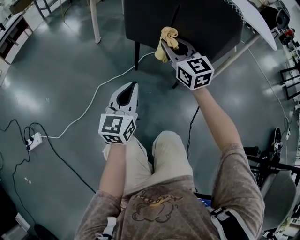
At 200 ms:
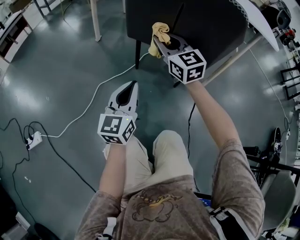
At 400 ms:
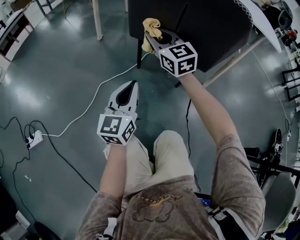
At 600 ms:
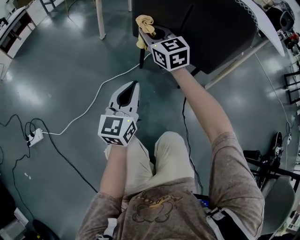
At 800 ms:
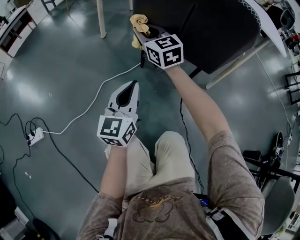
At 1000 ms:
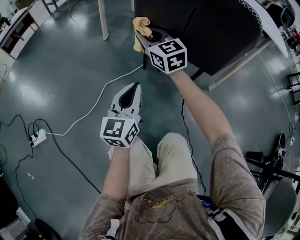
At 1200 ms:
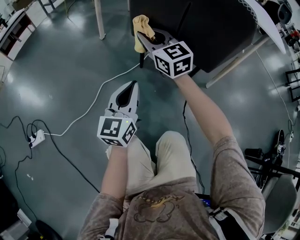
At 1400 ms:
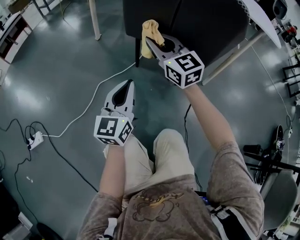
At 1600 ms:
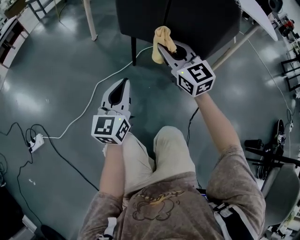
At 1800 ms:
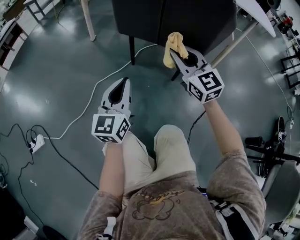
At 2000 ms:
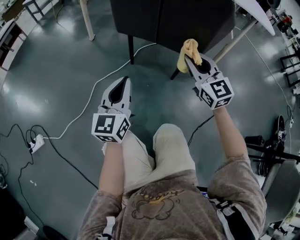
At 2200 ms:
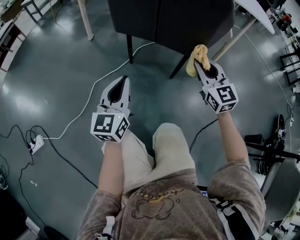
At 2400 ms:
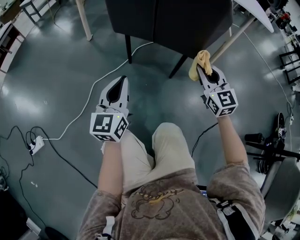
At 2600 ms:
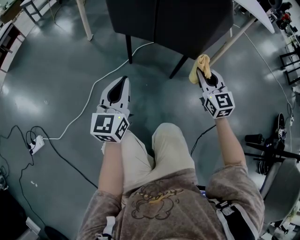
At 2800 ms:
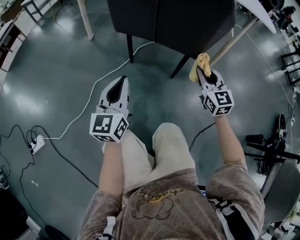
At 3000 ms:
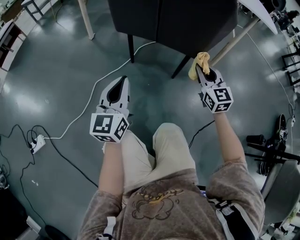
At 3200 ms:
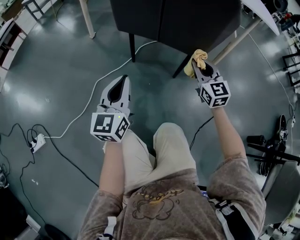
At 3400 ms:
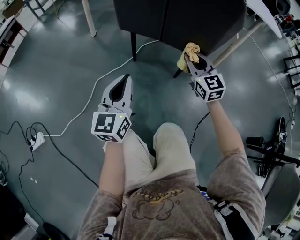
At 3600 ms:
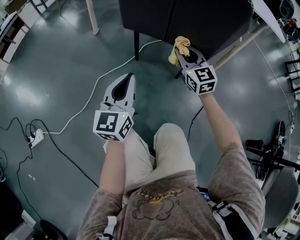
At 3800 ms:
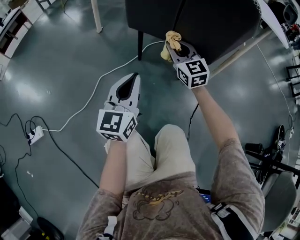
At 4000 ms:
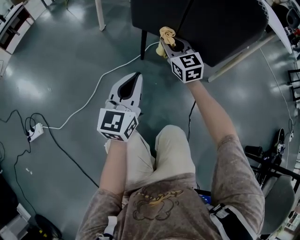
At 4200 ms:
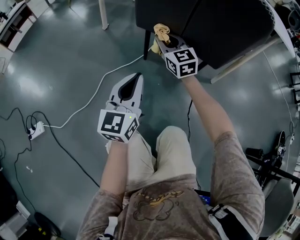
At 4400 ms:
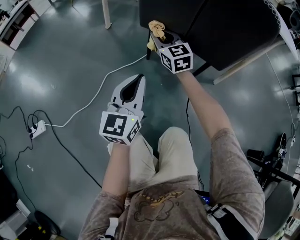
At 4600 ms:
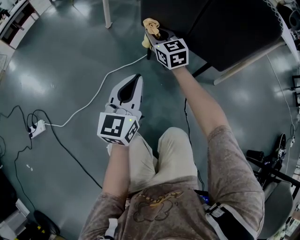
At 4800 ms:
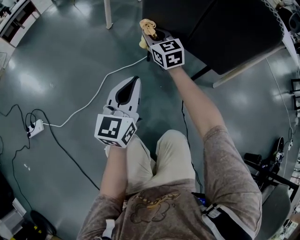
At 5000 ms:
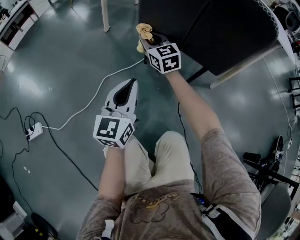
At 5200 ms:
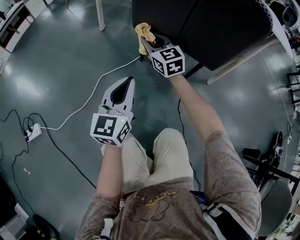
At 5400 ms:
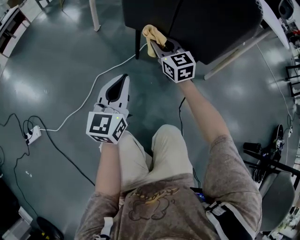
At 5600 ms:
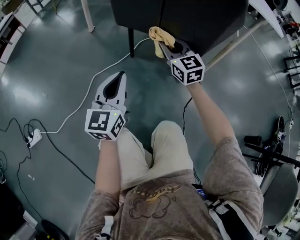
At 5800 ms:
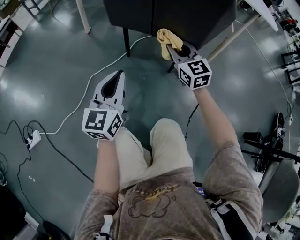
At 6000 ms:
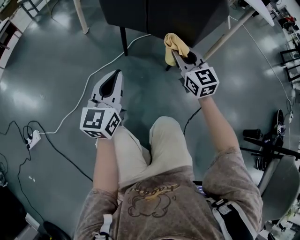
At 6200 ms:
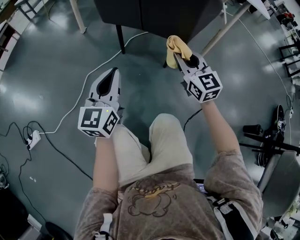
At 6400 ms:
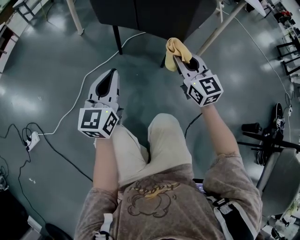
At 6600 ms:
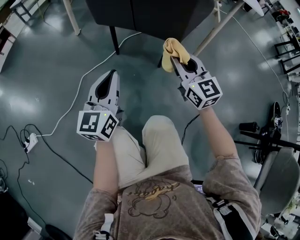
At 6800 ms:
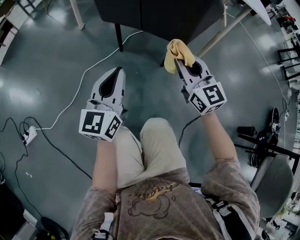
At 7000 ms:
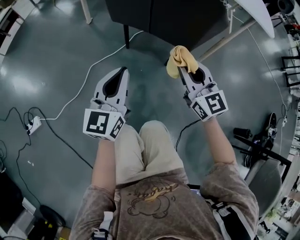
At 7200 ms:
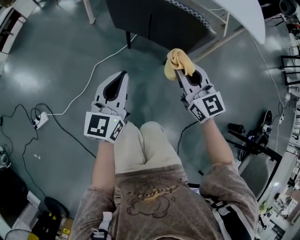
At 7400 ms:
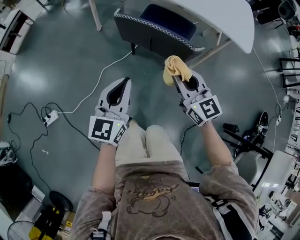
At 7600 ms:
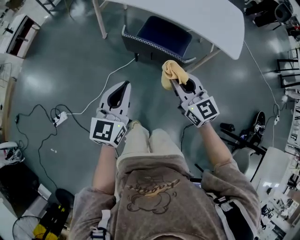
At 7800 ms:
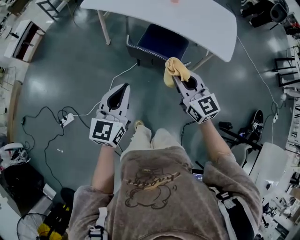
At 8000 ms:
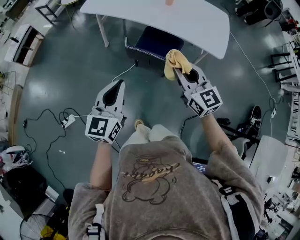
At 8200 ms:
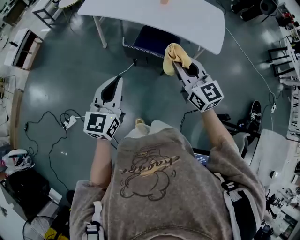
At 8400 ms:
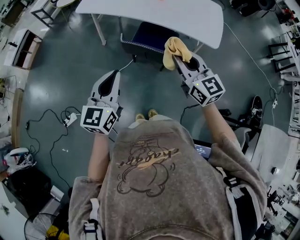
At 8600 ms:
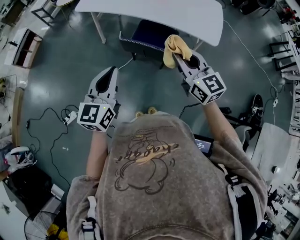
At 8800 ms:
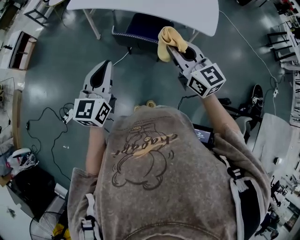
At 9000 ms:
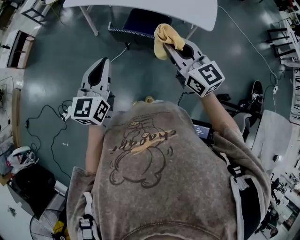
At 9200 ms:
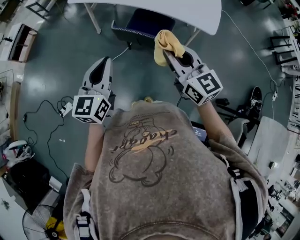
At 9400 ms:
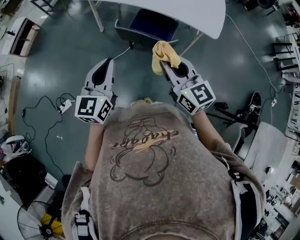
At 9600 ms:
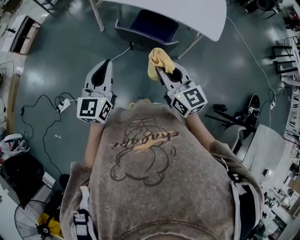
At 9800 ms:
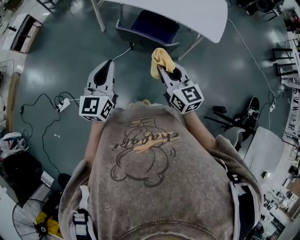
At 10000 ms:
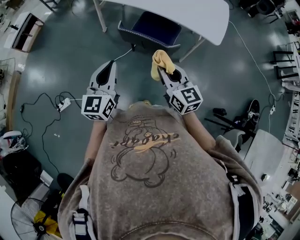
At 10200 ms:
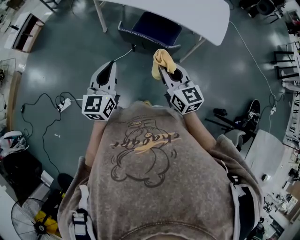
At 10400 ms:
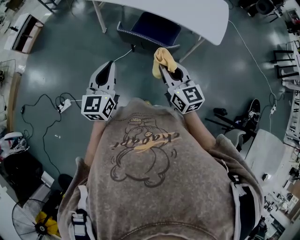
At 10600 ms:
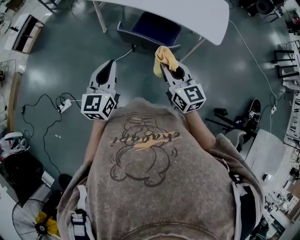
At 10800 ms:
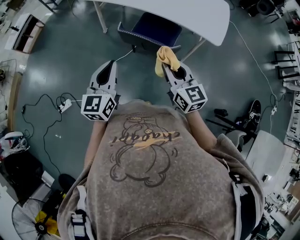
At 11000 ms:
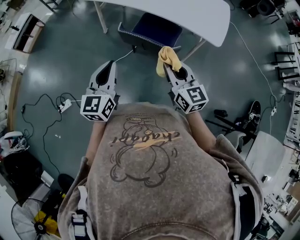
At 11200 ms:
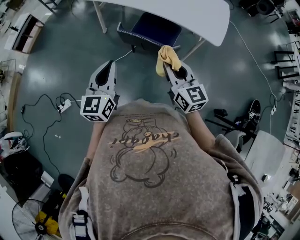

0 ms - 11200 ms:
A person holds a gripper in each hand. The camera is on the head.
0 ms - 1600 ms: The right gripper reaches roughly 10 cm to the left, then returns.
1600 ms - 3200 ms: The right gripper heads to the right and downward, covering approximately 20 cm.
3200 ms - 4800 ms: The right gripper is displaced to the left and forward by about 30 cm.
4800 ms - 6400 ms: The left gripper moves to the right, approximately 5 cm. The right gripper moves to the right and backward, approximately 35 cm.
6400 ms - 8000 ms: The two grippers go roughly 50 cm upward.
8000 ms - 9600 ms: The right gripper shifts some 10 cm backward.
9600 ms - 11200 ms: The right gripper moves approximately 5 cm.

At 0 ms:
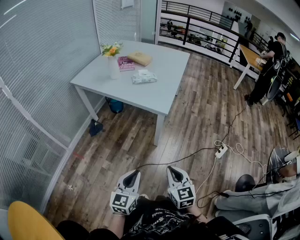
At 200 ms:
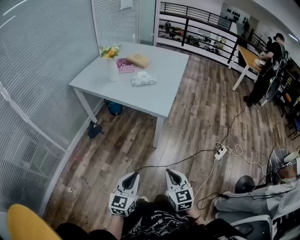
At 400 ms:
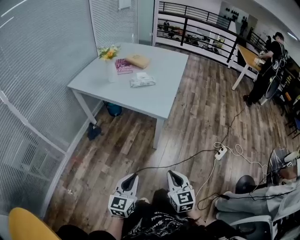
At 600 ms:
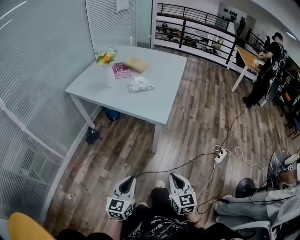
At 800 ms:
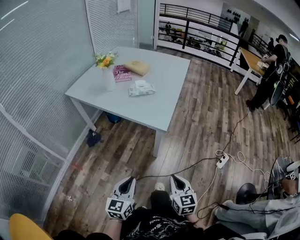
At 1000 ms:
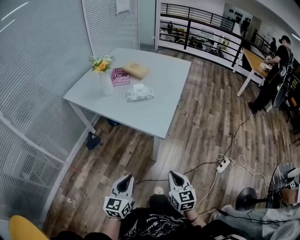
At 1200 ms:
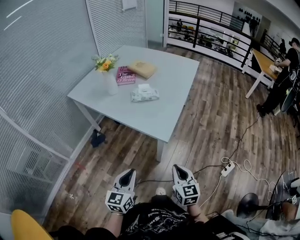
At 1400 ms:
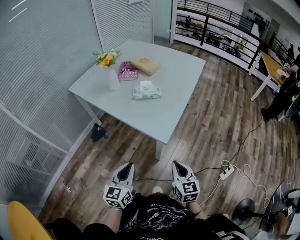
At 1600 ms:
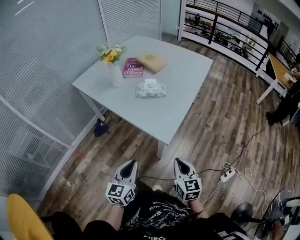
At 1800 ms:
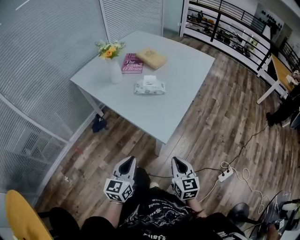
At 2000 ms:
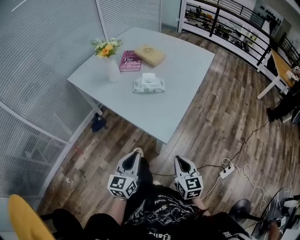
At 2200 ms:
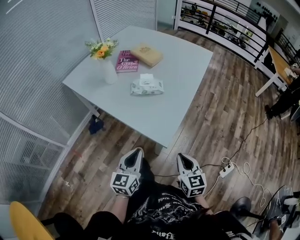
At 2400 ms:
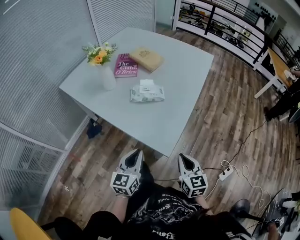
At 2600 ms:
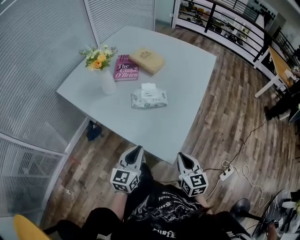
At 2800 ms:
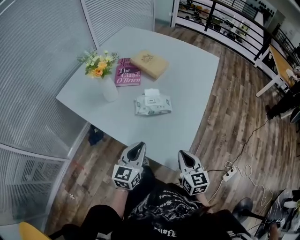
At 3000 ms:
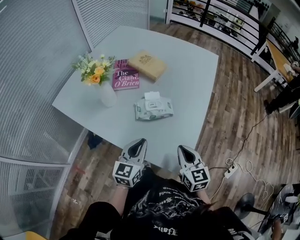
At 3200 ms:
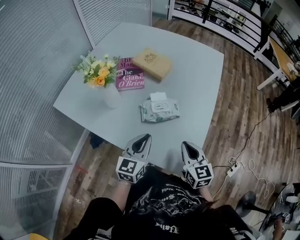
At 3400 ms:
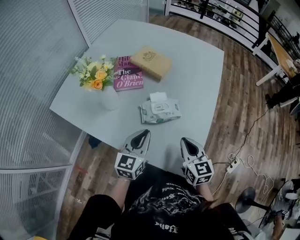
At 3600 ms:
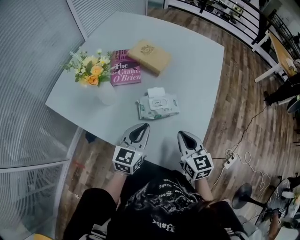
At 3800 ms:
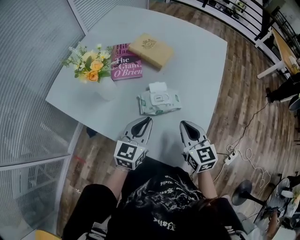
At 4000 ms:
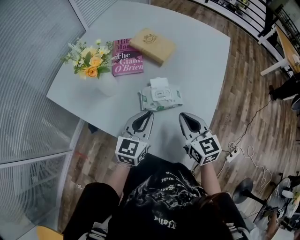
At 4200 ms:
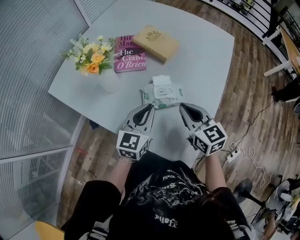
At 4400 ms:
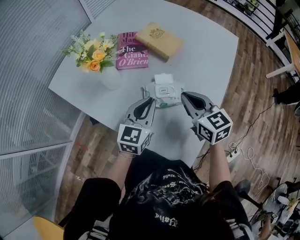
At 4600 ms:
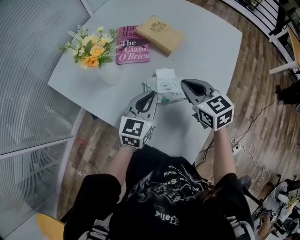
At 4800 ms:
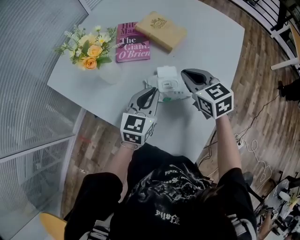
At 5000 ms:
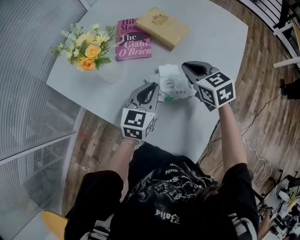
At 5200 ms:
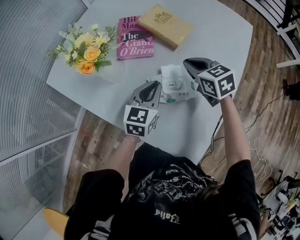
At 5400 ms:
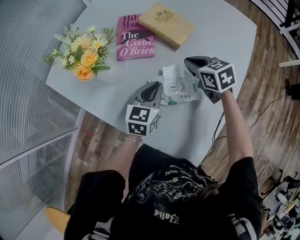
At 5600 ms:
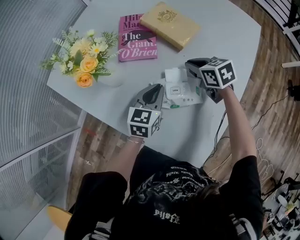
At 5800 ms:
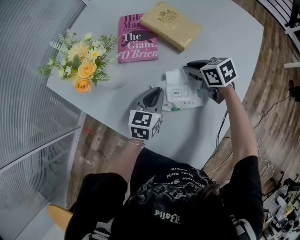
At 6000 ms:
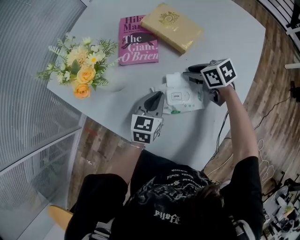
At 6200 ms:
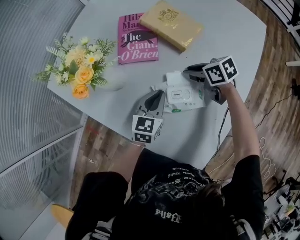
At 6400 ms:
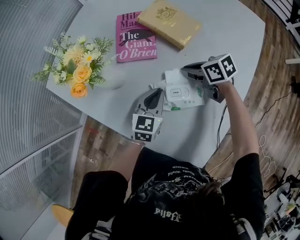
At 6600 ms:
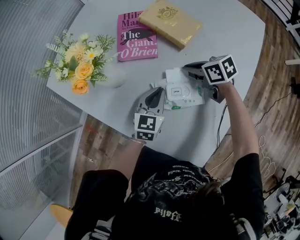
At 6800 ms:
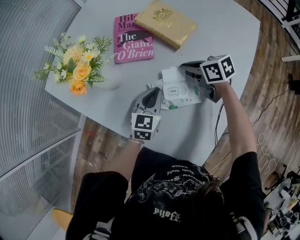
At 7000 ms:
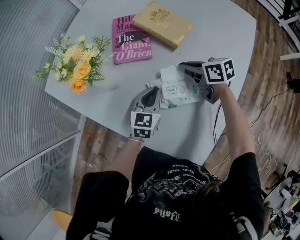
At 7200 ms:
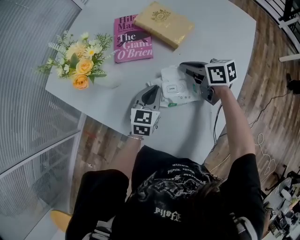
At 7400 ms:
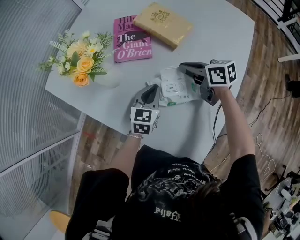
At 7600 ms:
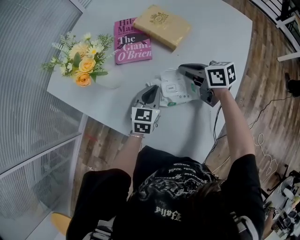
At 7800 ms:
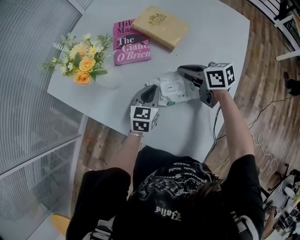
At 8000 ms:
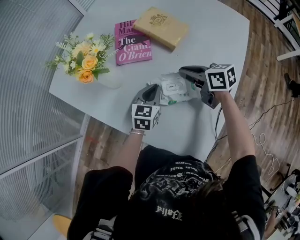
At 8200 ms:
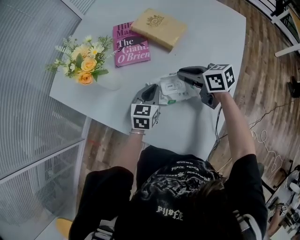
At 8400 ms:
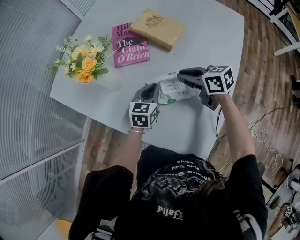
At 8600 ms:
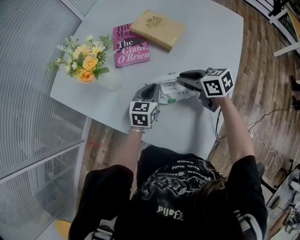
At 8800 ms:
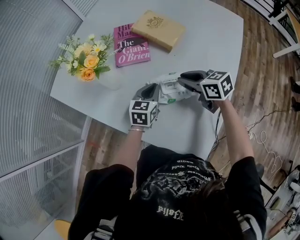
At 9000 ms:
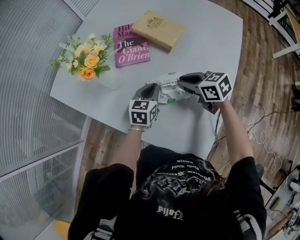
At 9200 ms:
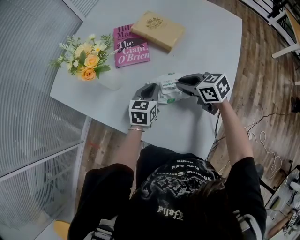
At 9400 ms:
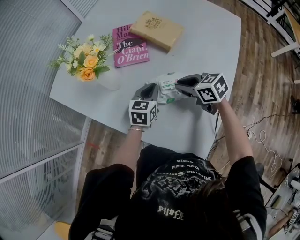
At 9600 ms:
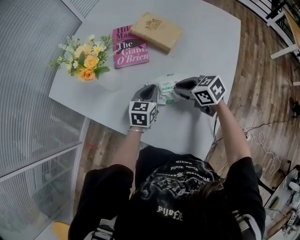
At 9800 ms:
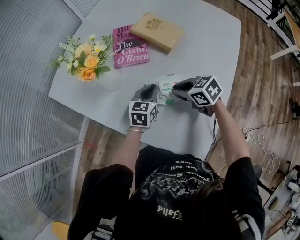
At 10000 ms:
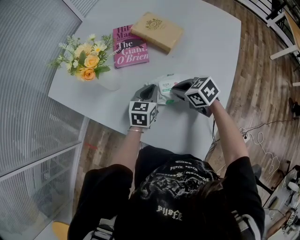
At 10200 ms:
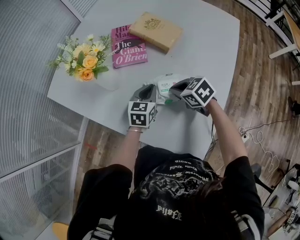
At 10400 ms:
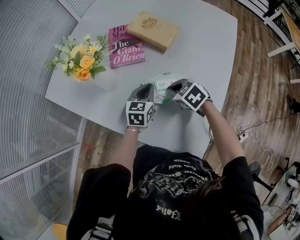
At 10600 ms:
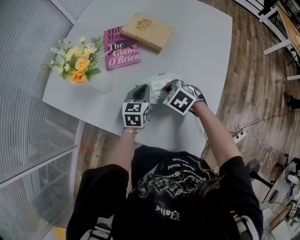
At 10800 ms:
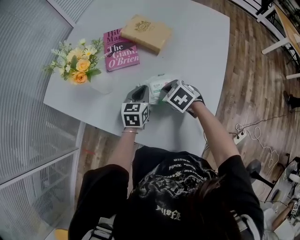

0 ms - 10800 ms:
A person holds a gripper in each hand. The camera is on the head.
0 ms - 1600 ms: The grippers both shift forward by about 30 cm.
1600 ms - 3000 ms: The two grippers go some 30 cm forward.
3000 ms - 4600 ms: The two grippers go roughly 20 cm forward. The right gripper swivels roughly 20 degrees.
4600 ms - 6200 ms: The grippers both shift downward and forward by roughly 15 cm. The right gripper changes its angle by about 40 degrees, and opens up.
6200 ms - 7800 ms: The right gripper heads upward, covering roughly 5 cm, and closes.
7800 ms - 9200 ms: The right gripper heads backward, covering some 5 cm.
9200 ms - 10800 ms: The right gripper heads downward, covering some 5 cm, and swivels about 30 degrees.

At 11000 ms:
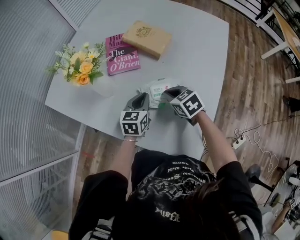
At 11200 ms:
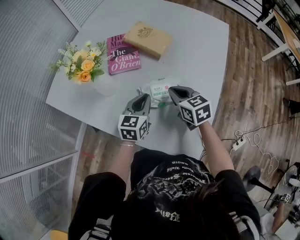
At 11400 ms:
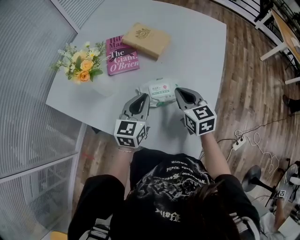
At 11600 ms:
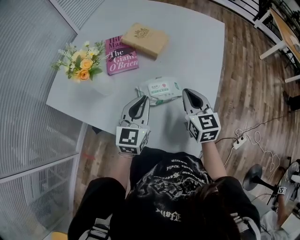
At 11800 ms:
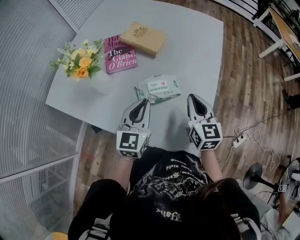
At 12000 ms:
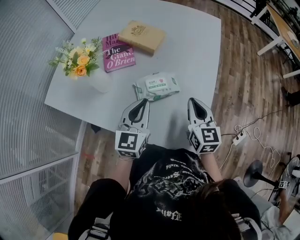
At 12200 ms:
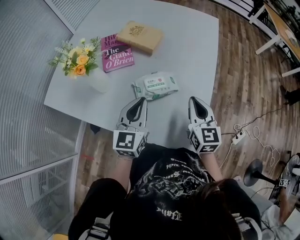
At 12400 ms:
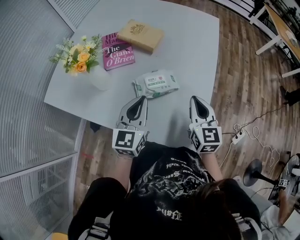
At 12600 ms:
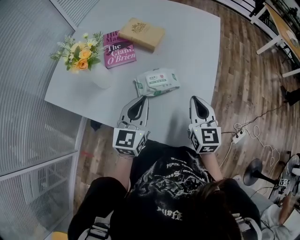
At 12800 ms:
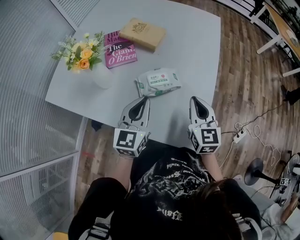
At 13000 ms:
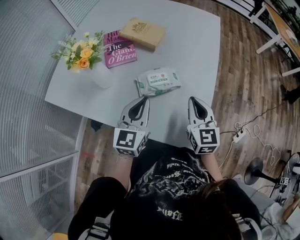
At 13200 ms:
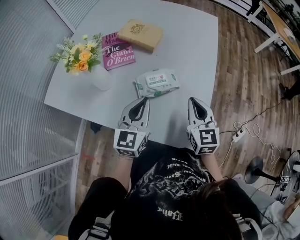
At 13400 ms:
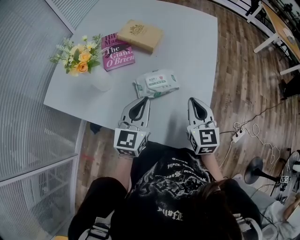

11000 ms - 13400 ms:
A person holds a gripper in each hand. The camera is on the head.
11000 ms - 12200 ms: The left gripper moves upward and backward, roughly 15 cm, and swivels approximately 20 degrees; the right gripper travels to the right, upward and backward by approximately 20 cm, and angles its fingers upward, by approximately 30 degrees.
12200 ms - 13400 ms: There are only small adjustments of the grippers.
